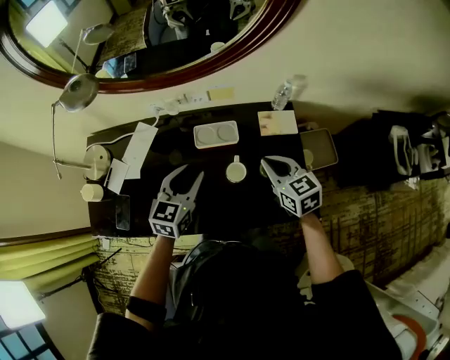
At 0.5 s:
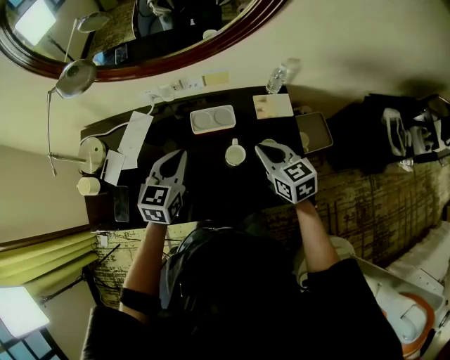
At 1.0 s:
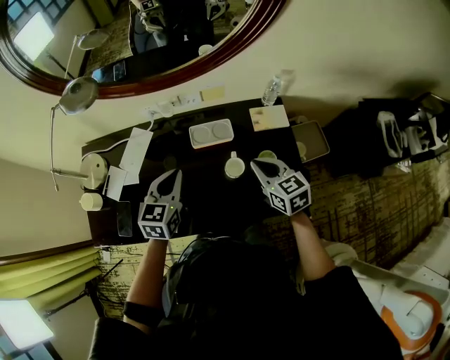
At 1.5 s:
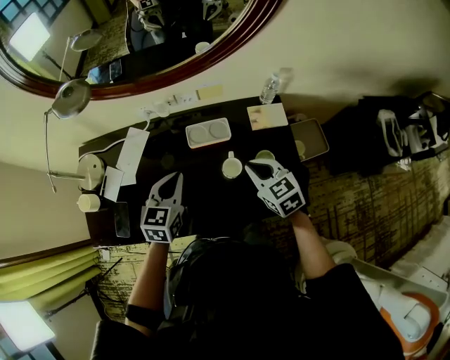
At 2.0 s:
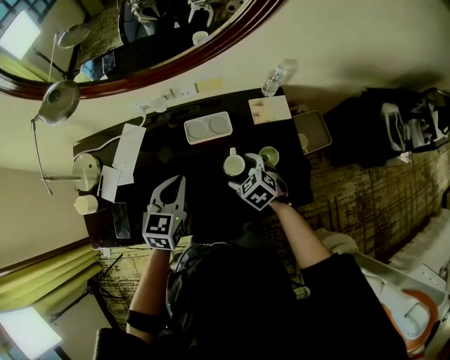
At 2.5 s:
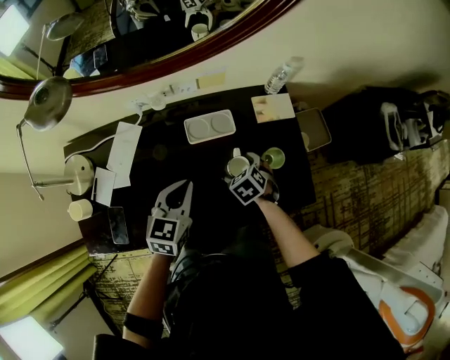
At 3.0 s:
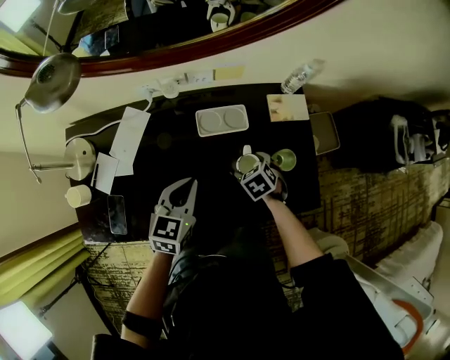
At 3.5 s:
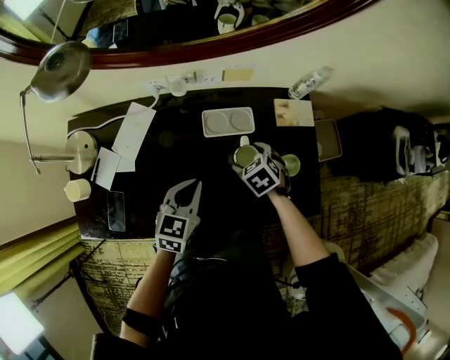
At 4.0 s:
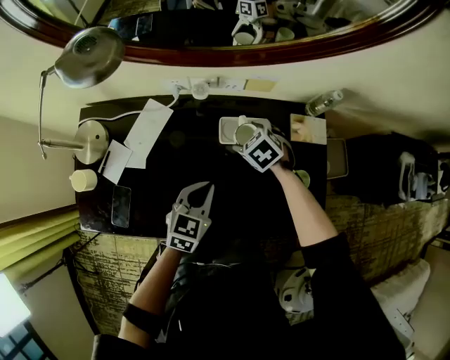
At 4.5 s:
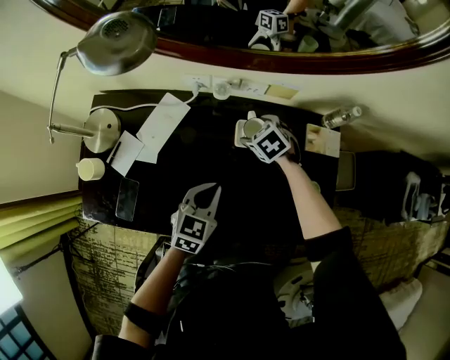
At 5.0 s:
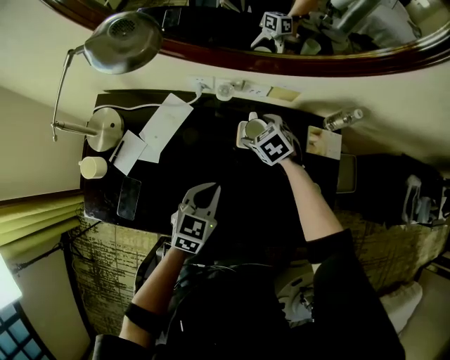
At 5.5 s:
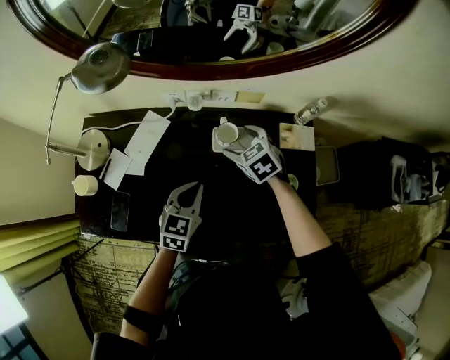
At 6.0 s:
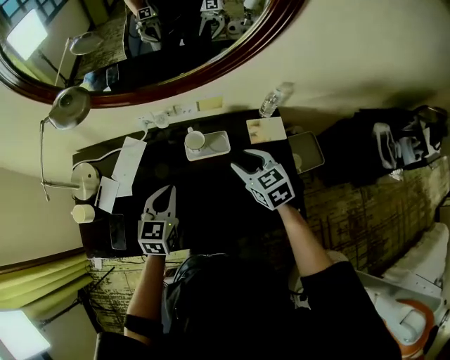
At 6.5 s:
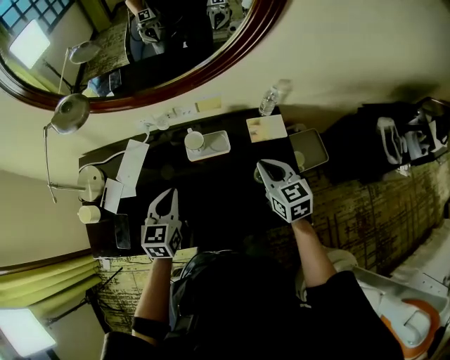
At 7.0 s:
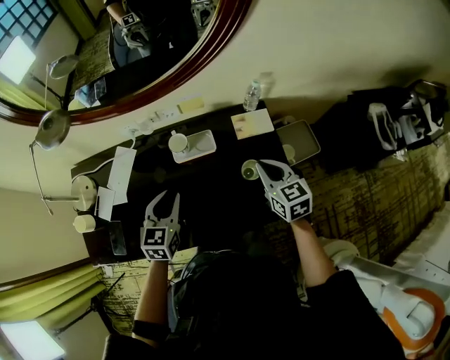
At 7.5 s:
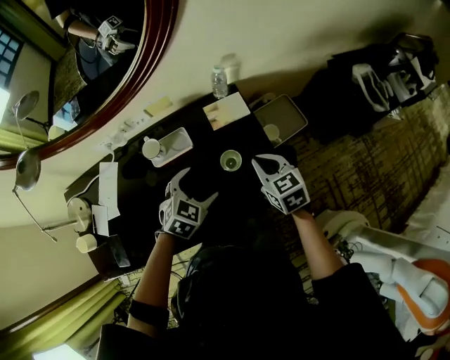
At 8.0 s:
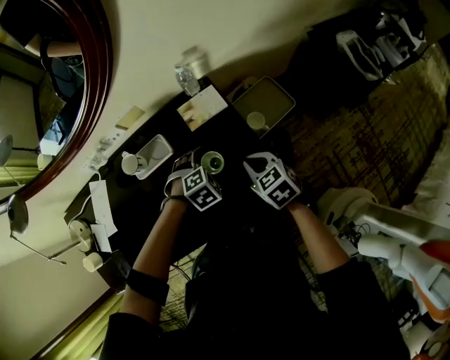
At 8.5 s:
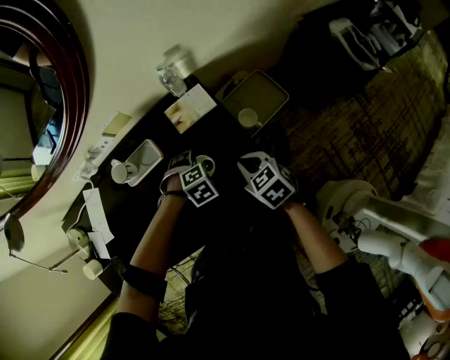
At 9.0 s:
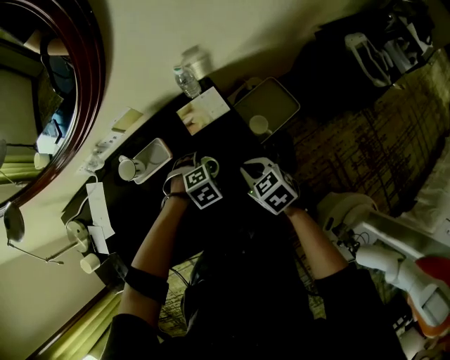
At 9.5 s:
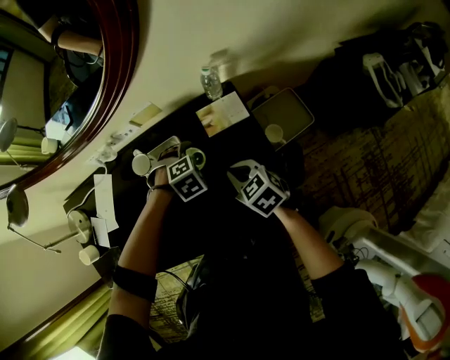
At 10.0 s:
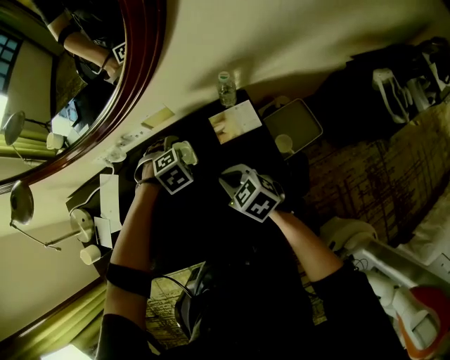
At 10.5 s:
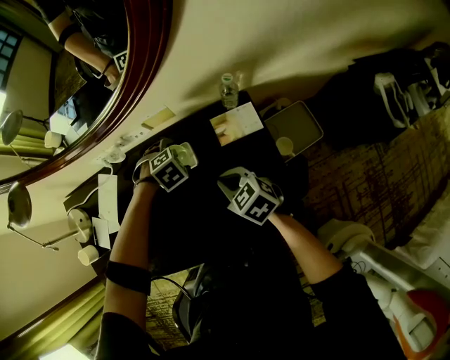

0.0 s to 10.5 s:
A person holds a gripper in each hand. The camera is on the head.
0.0 to 2.0 s: The right gripper moves downward and to the left, about 15 cm, swivels approximately 30 degrees, and opens.
2.0 to 4.0 s: The right gripper heads forward and to the left, covering roughly 20 cm. The left gripper travels downward by some 10 cm.
4.0 to 6.5 s: The left gripper heads upward, covering roughly 10 cm. Meanwhile the right gripper moves upward, to the right and backward, approximately 25 cm, tilts its fingers roughly 40 degrees upward, and closes its fingers.
6.5 to 8.5 s: The left gripper shifts by approximately 40 cm, tilts its fingers roughly 50 degrees downward, and opens; the right gripper changes place by roughly 20 cm, and swivels some 20 degrees.
8.5 to 10.5 s: The right gripper shifts by approximately 20 cm, and rotates about 20 degrees; the left gripper changes place by roughly 25 cm.

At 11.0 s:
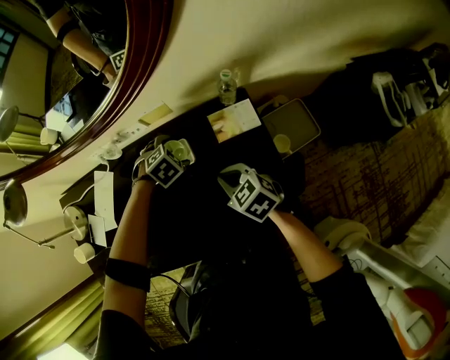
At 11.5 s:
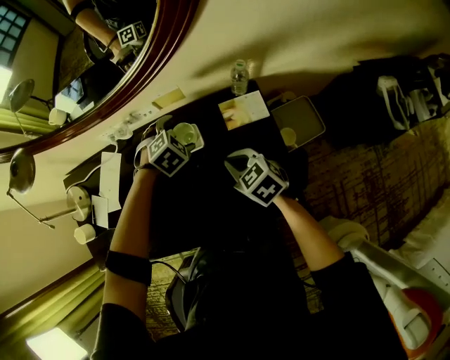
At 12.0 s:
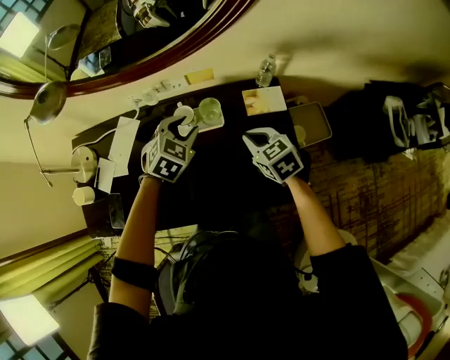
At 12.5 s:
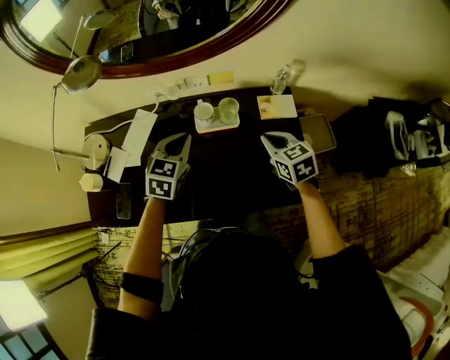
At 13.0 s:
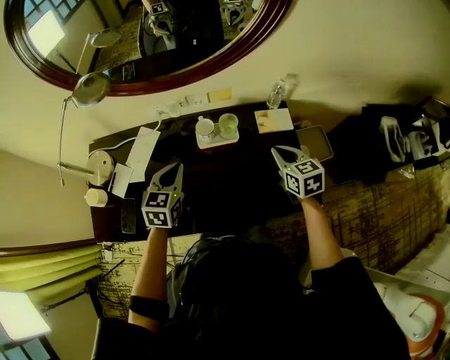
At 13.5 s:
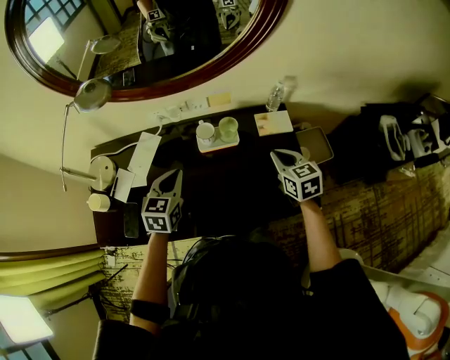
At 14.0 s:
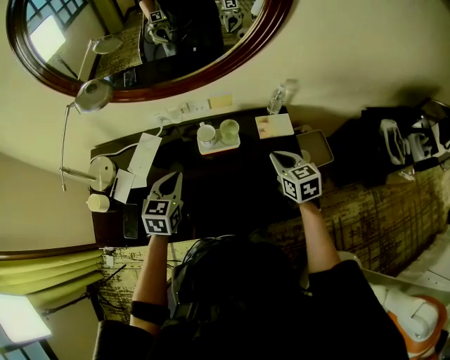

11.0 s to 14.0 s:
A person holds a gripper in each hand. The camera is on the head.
11.0 to 12.5 s: The left gripper heads upward, to the left and backward, covering some 30 cm, angles its fingers upward, by approximately 40 degrees, and closes its fingers. Meanwhile the right gripper moves upward, approximately 10 cm.
12.5 to 14.0 s: The left gripper heads to the left, covering about 5 cm.

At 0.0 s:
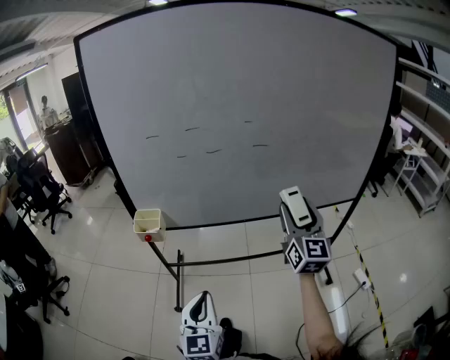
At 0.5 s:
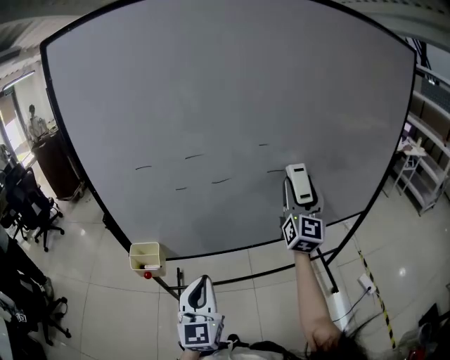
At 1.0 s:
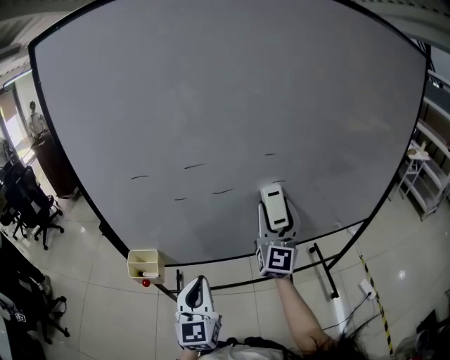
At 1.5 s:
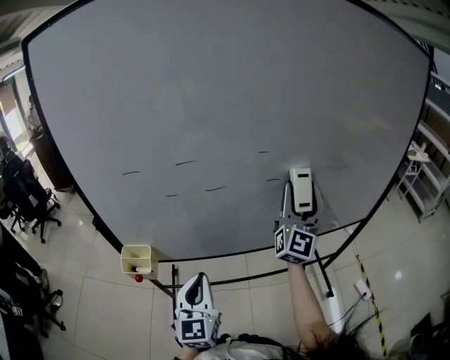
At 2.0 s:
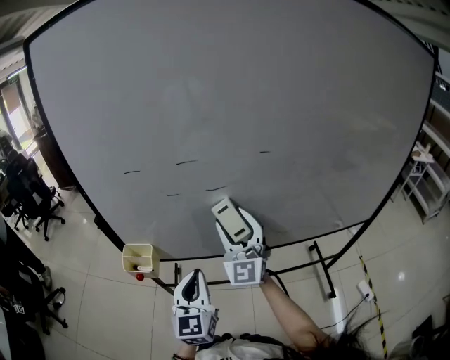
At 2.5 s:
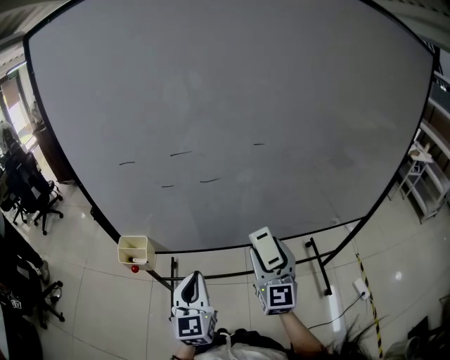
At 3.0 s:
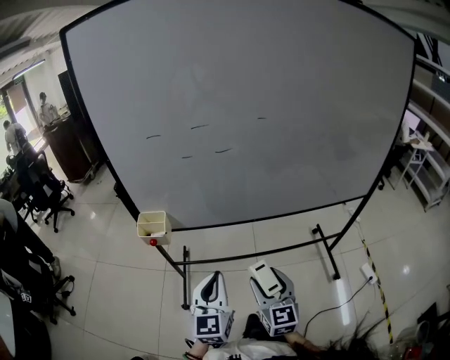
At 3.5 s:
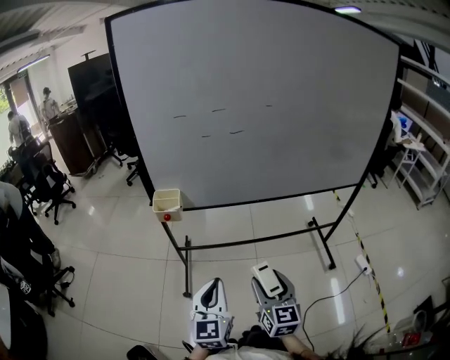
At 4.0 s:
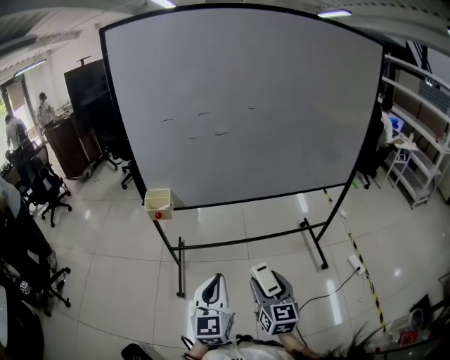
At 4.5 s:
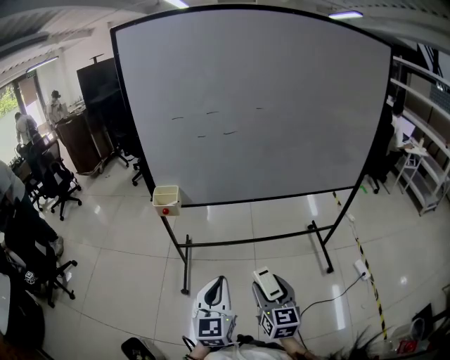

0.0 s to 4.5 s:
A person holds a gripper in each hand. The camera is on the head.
0.0 to 2.0 s: The right gripper goes left and right, some 20 cm each way, reversing 2 times, and swivels about 30 degrees, while the left gripper moves forward, approximately 25 cm.
2.0 to 4.5 s: The two grippers go some 40 cm backward. The right gripper changes its angle by about 50 degrees.

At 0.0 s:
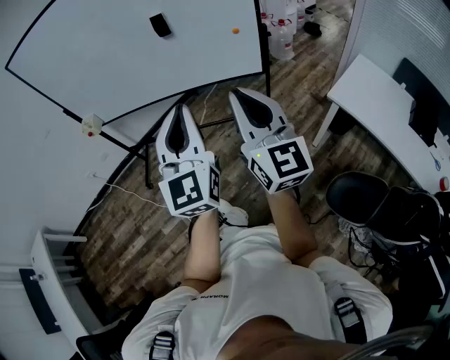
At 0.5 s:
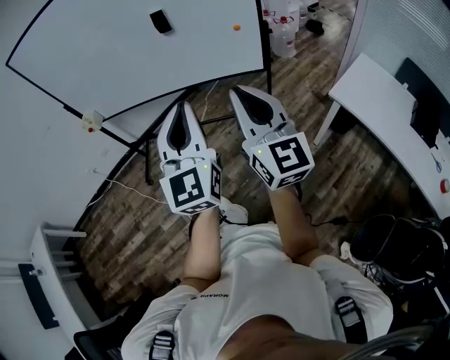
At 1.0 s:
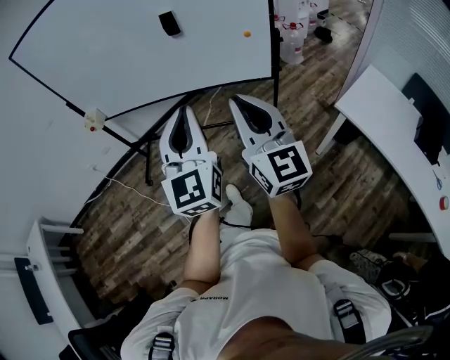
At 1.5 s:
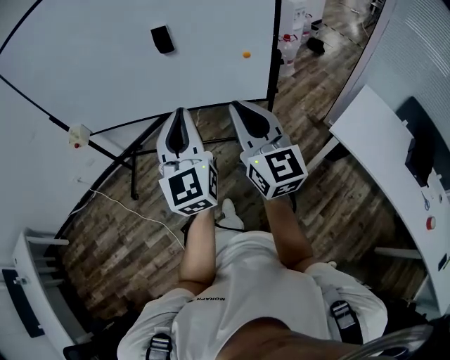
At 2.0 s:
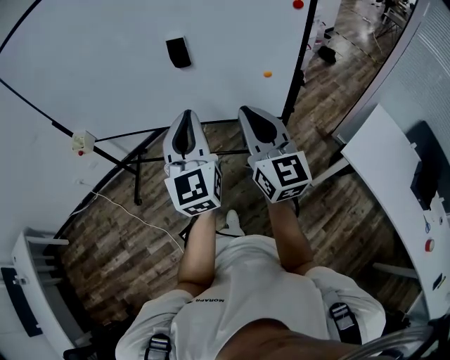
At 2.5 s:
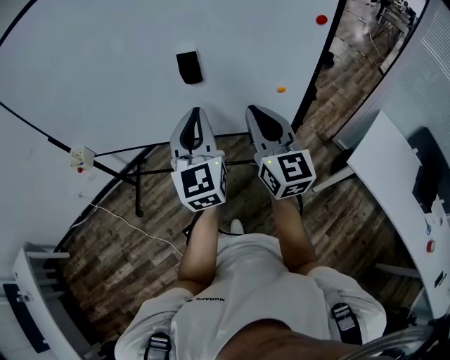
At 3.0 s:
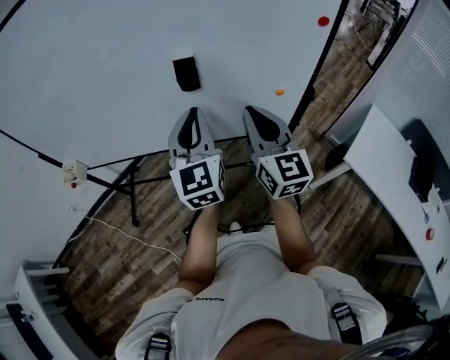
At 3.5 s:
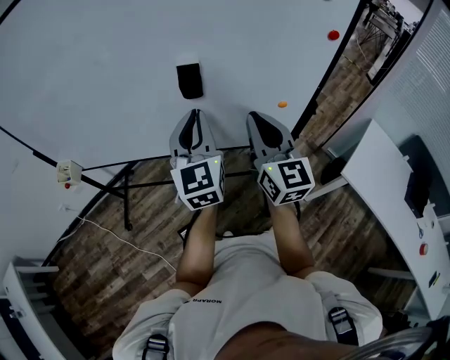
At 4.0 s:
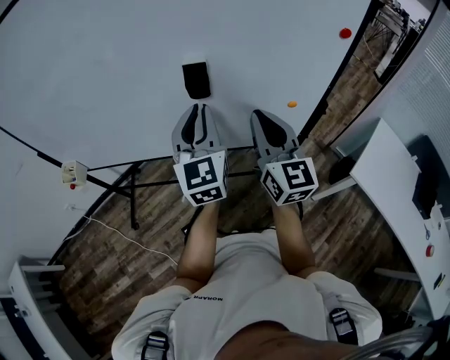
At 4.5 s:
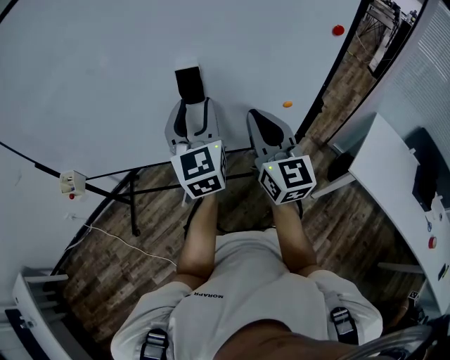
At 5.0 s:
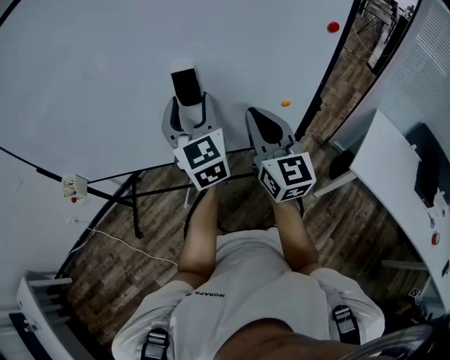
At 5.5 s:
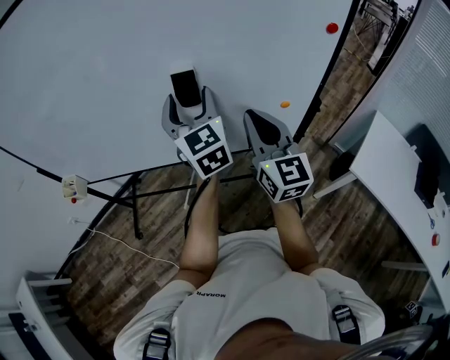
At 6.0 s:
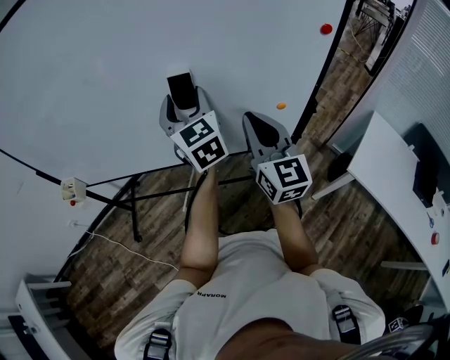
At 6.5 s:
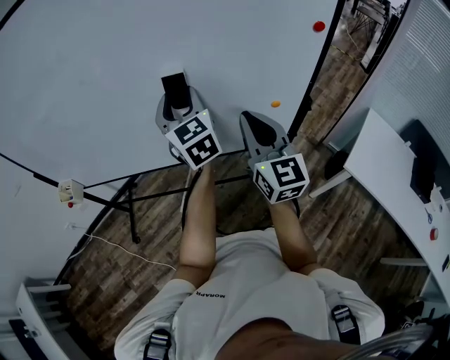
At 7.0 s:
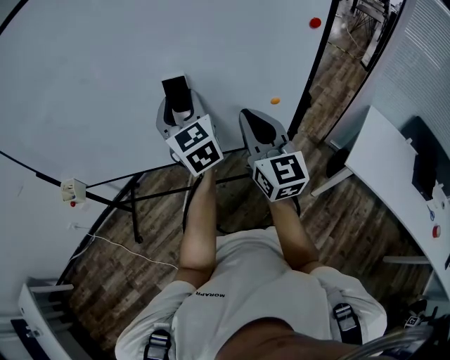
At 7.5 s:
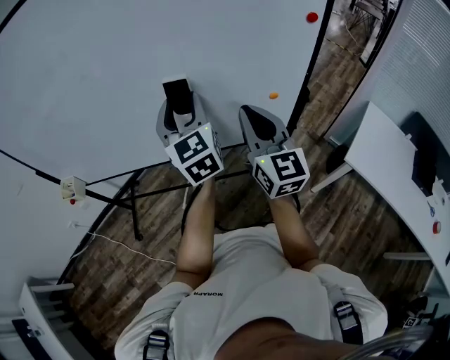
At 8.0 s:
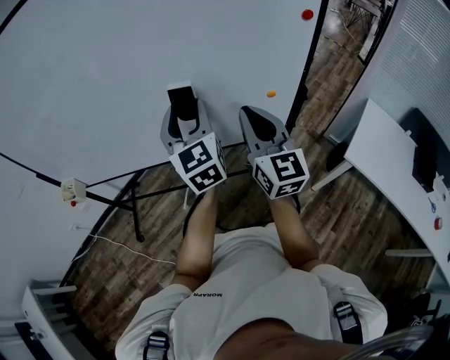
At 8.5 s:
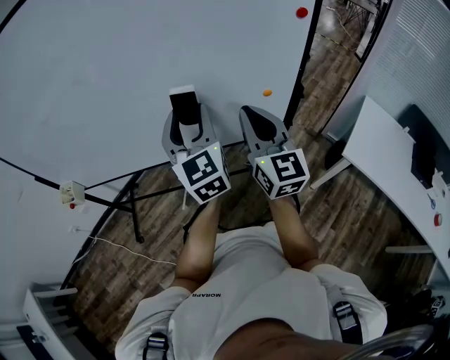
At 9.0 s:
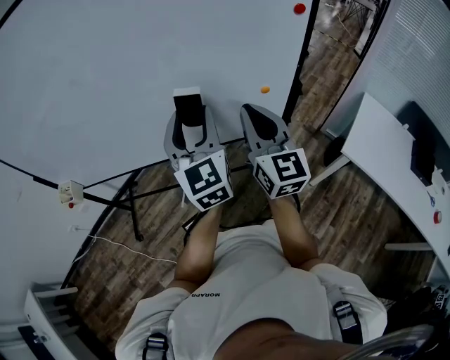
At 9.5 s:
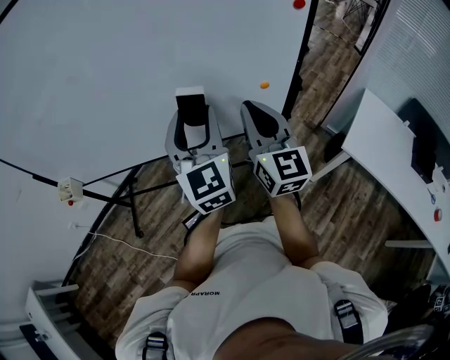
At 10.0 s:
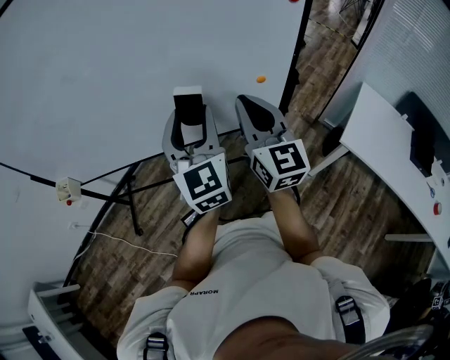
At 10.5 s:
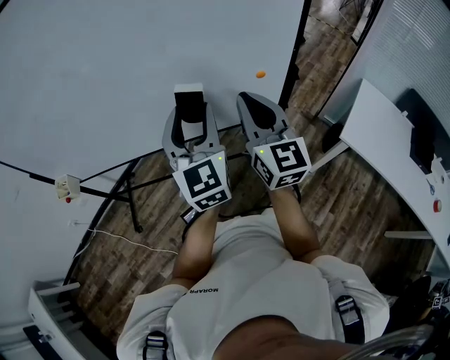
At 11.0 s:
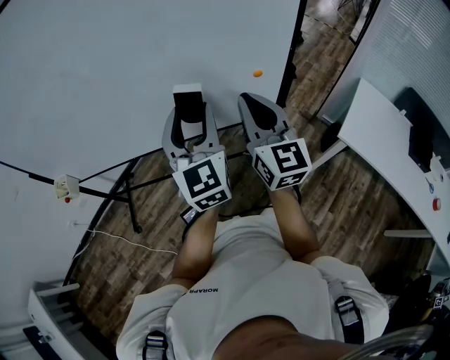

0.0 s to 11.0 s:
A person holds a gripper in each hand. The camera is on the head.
0.0 to 2.0 s: The grippers both shift forward by roughly 25 cm.
2.0 to 3.5 s: Both grippers move forward, some 15 cm.
3.5 to 5.5 s: The left gripper moves forward, roughly 10 cm, and opens its fingers.
5.5 to 7.5 s: The grippers stay close to where they were, moving slightly.
7.5 to 9.0 s: The left gripper is displaced backward by approximately 5 cm.
9.0 to 11.0 s: The grippers make only small movements.